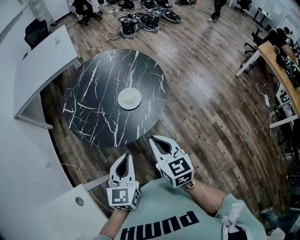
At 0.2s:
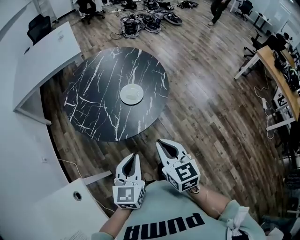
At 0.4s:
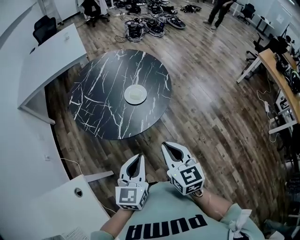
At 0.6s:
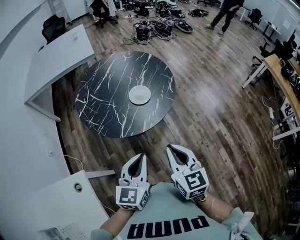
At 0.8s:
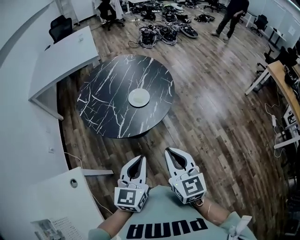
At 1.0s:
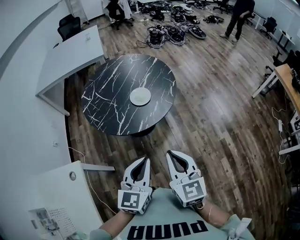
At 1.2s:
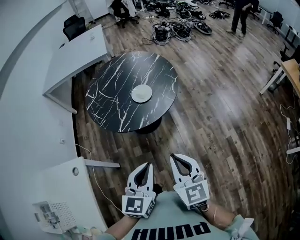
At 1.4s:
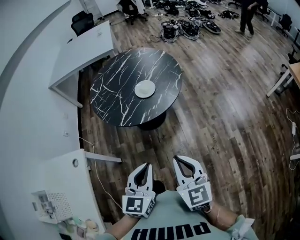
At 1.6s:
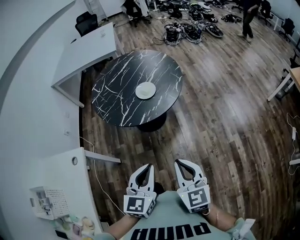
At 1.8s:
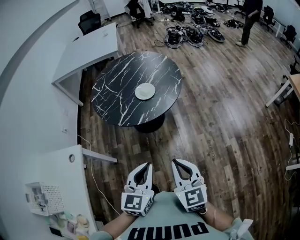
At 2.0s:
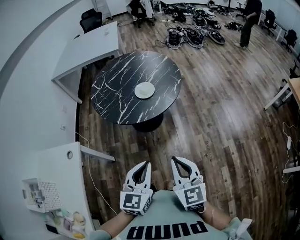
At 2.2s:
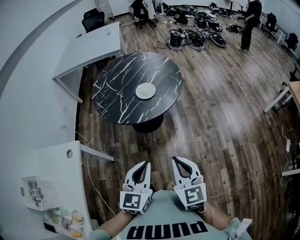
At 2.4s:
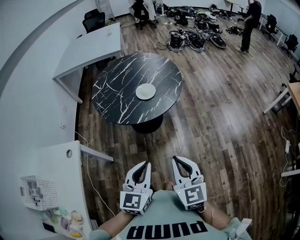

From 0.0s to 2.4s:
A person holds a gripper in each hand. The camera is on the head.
From 0.0s to 1.2s: Both grippers move backward and to the right, some 20 cm.
From 1.2s to 2.4s: The left gripper moves roughly 5 cm. Meanwhile the right gripper shifts by roughly 5 cm.

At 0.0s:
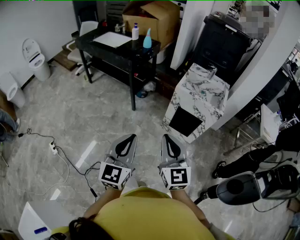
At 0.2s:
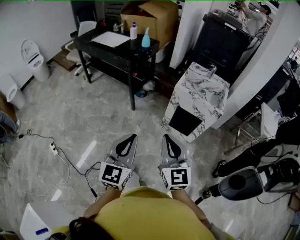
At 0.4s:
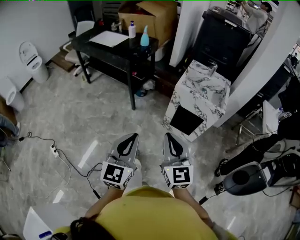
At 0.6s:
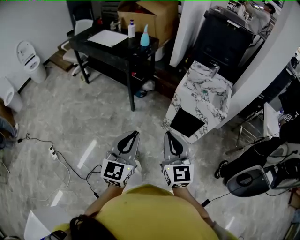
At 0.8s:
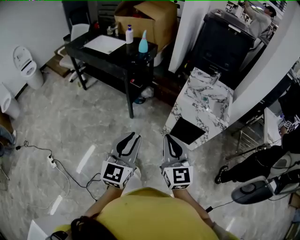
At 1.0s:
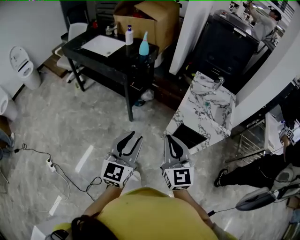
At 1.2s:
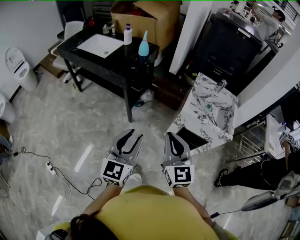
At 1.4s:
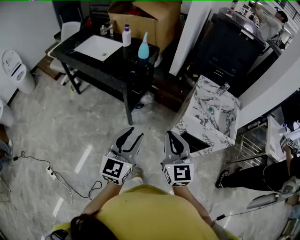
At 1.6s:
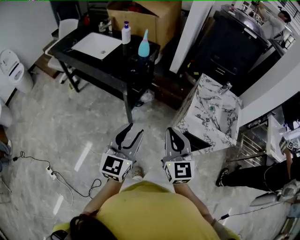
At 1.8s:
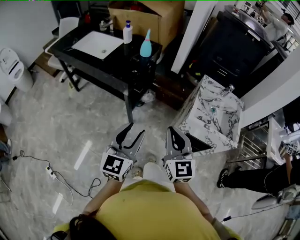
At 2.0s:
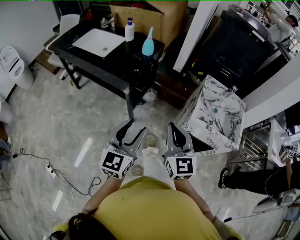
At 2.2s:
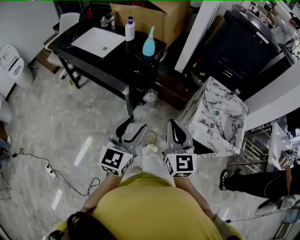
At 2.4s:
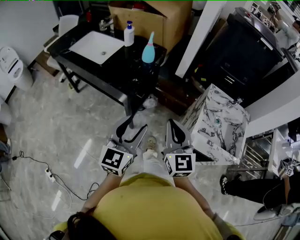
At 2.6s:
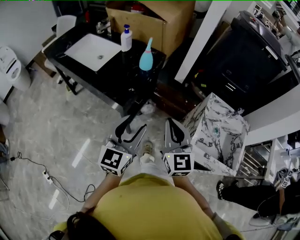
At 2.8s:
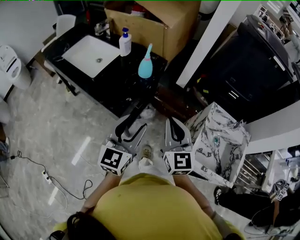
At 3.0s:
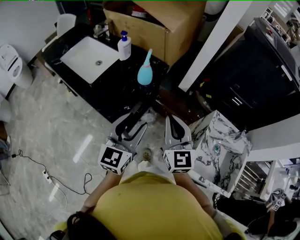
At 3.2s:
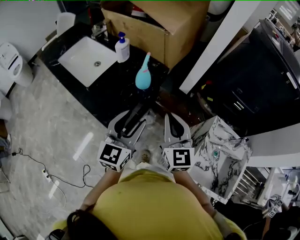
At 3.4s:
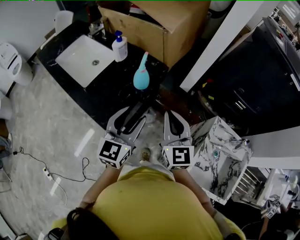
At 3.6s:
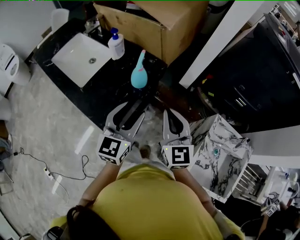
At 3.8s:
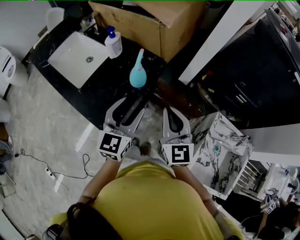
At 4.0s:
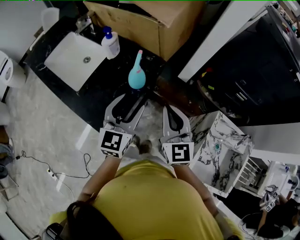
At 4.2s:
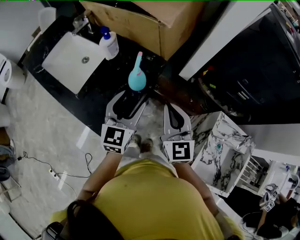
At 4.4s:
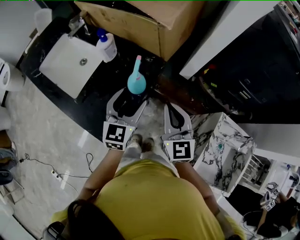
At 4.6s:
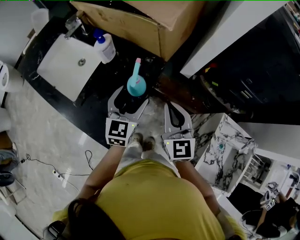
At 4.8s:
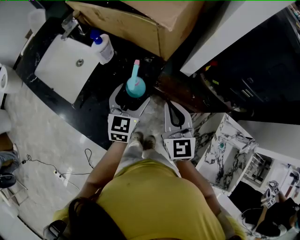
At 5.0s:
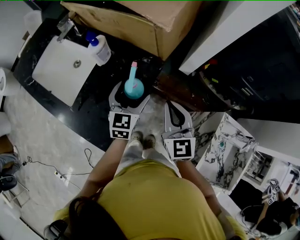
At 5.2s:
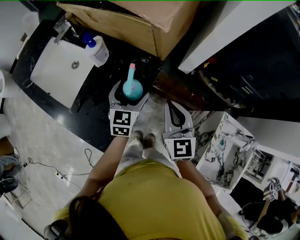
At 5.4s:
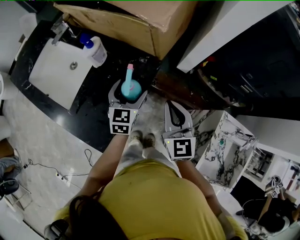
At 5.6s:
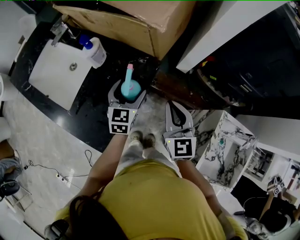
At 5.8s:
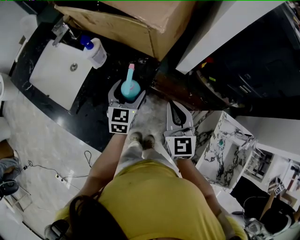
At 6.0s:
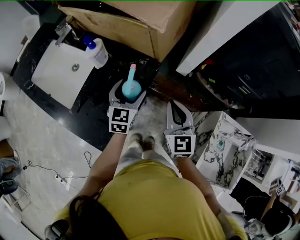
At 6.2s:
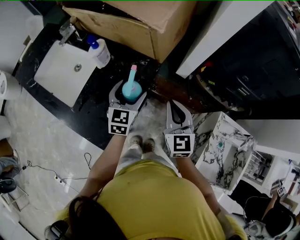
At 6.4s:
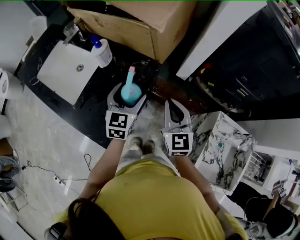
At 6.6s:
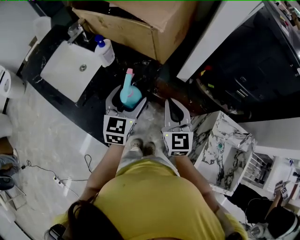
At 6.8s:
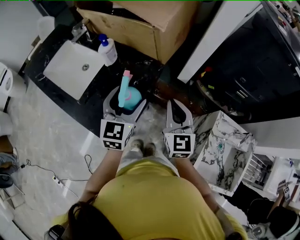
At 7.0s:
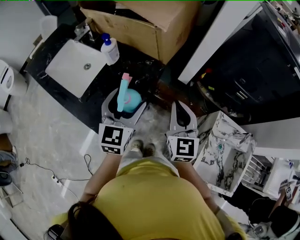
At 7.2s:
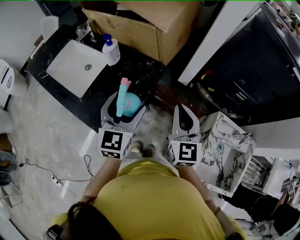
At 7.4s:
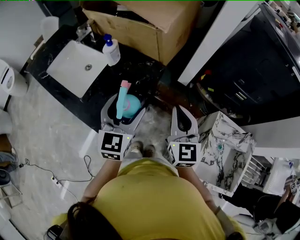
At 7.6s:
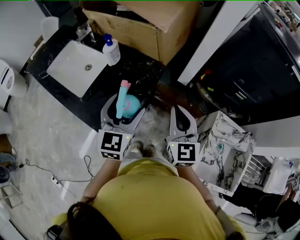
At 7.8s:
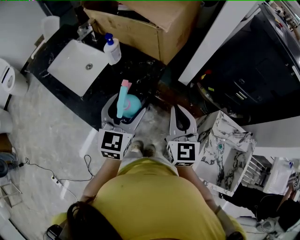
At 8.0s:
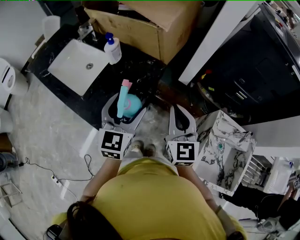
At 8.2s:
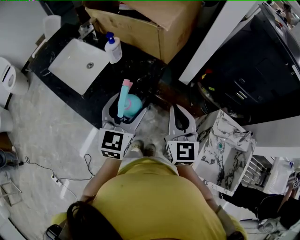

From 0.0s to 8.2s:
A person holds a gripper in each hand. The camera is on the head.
From 0.0s to 1.6s: The grippers both shift forward by about 40 cm. The left gripper opens.
From 1.6s to 3.2s: Both grippers are carried forward, approximately 40 cm.
From 3.2s to 5.0s: The right gripper heads forward, covering about 15 cm; the left gripper heads forward and downward, covering approximately 30 cm, and opens up.
From 5.0s to 6.6s: The left gripper heads upward and backward, covering about 10 cm.
From 6.6s to 8.2s: Both grippers travel together backward and upward, some 10 cm.

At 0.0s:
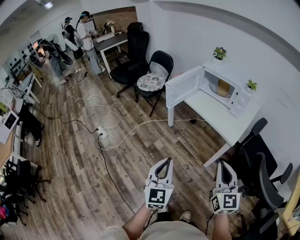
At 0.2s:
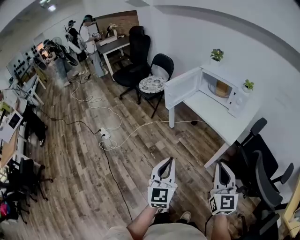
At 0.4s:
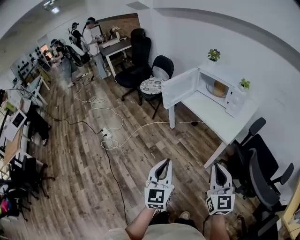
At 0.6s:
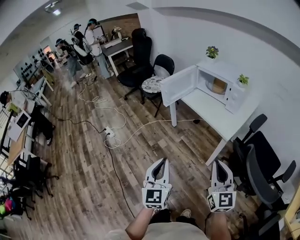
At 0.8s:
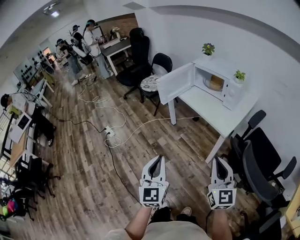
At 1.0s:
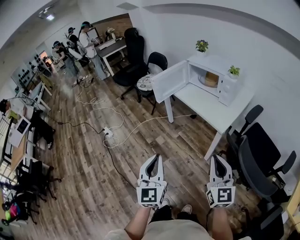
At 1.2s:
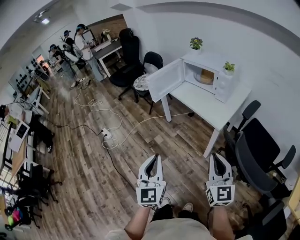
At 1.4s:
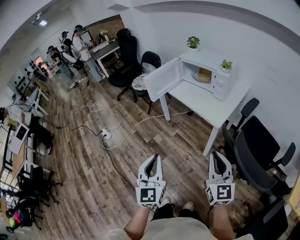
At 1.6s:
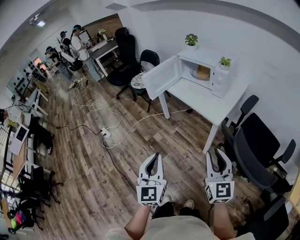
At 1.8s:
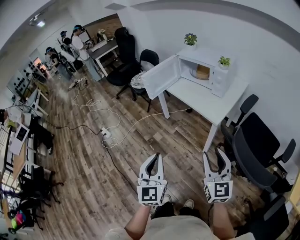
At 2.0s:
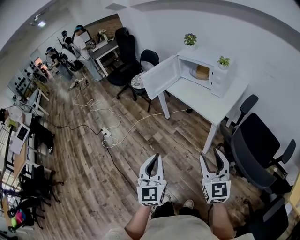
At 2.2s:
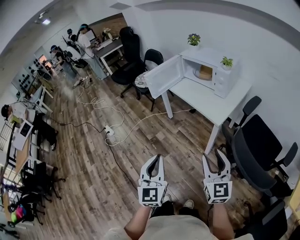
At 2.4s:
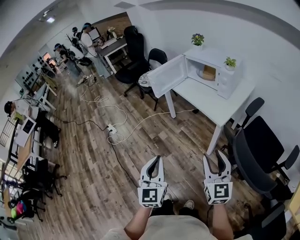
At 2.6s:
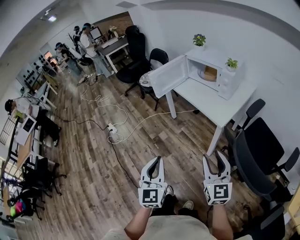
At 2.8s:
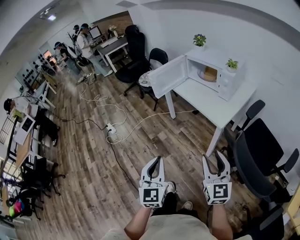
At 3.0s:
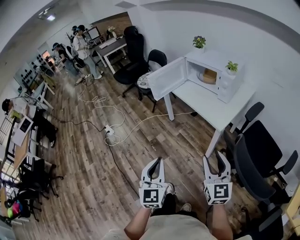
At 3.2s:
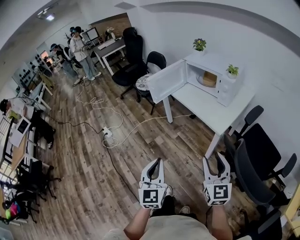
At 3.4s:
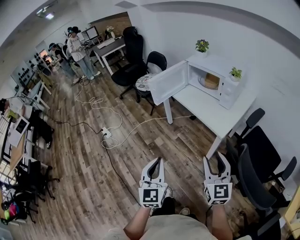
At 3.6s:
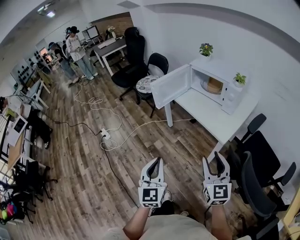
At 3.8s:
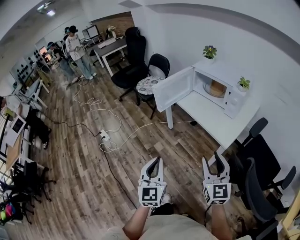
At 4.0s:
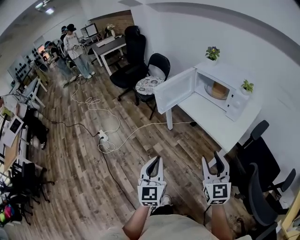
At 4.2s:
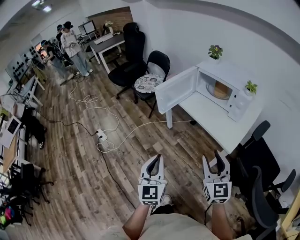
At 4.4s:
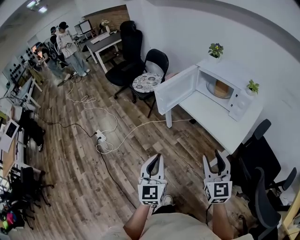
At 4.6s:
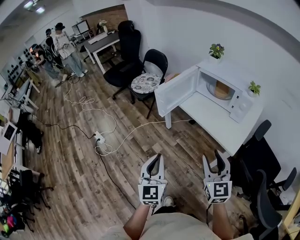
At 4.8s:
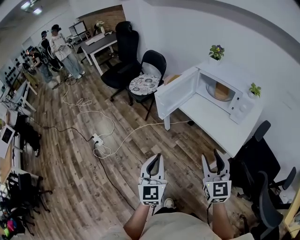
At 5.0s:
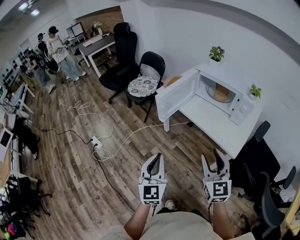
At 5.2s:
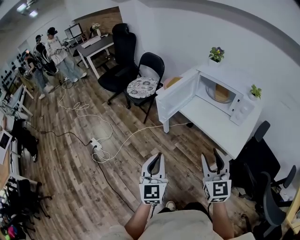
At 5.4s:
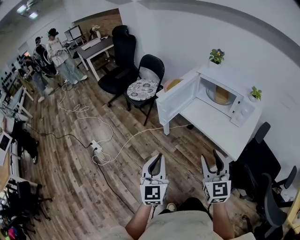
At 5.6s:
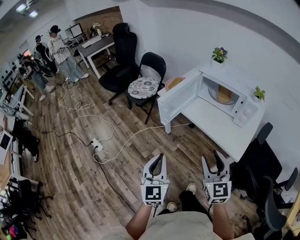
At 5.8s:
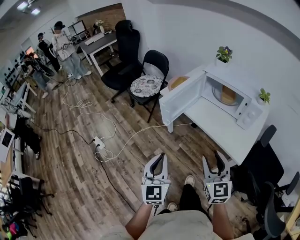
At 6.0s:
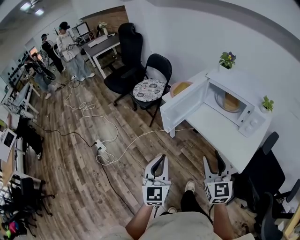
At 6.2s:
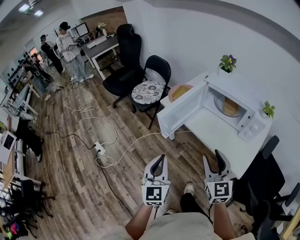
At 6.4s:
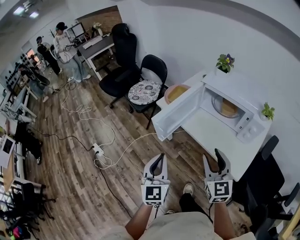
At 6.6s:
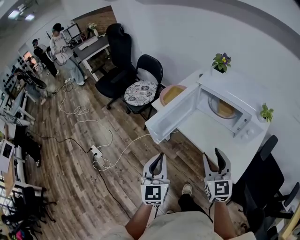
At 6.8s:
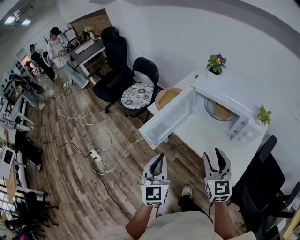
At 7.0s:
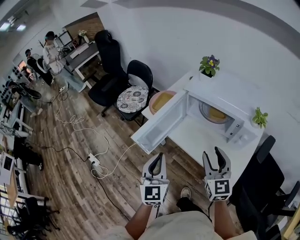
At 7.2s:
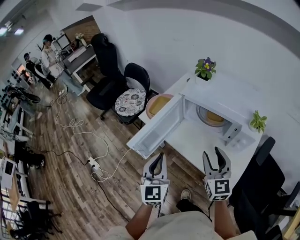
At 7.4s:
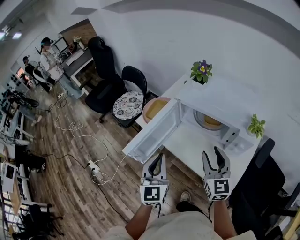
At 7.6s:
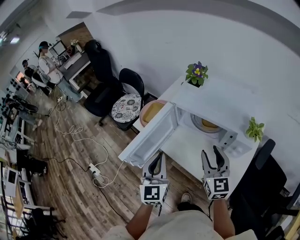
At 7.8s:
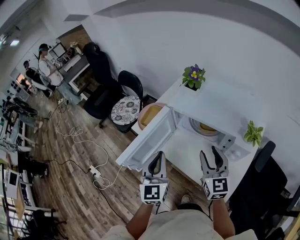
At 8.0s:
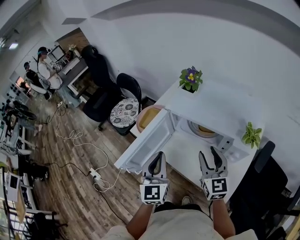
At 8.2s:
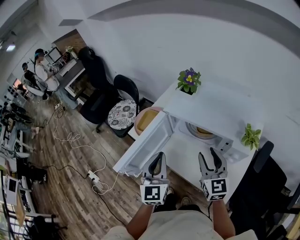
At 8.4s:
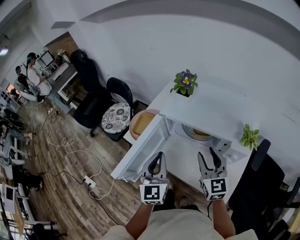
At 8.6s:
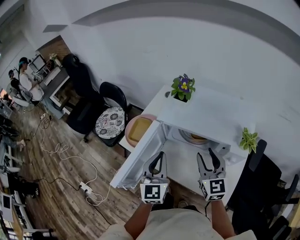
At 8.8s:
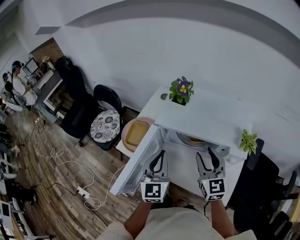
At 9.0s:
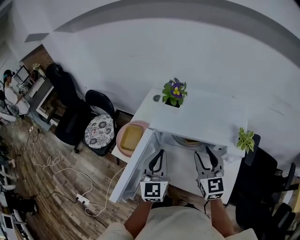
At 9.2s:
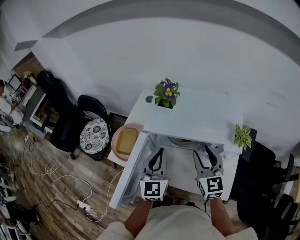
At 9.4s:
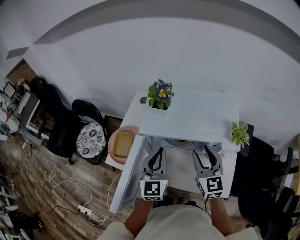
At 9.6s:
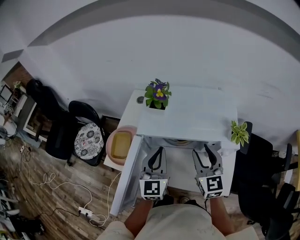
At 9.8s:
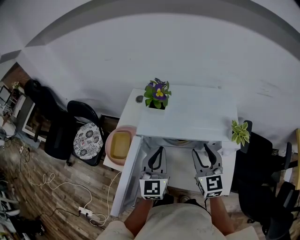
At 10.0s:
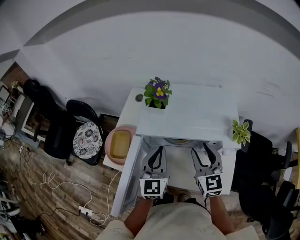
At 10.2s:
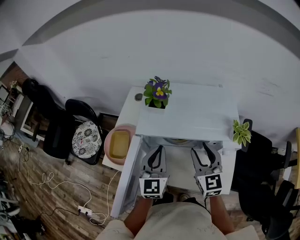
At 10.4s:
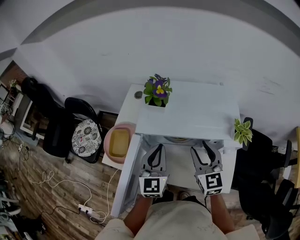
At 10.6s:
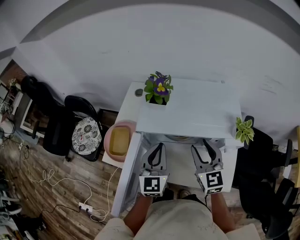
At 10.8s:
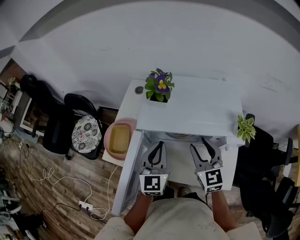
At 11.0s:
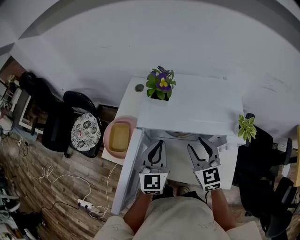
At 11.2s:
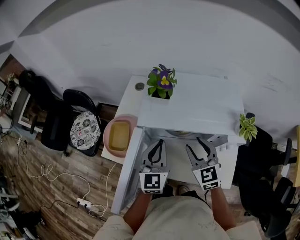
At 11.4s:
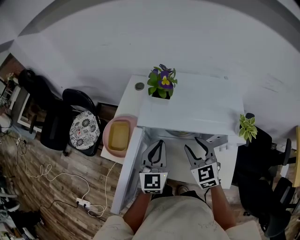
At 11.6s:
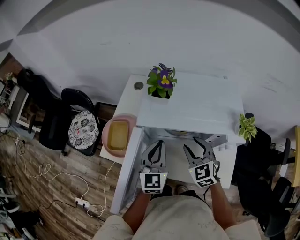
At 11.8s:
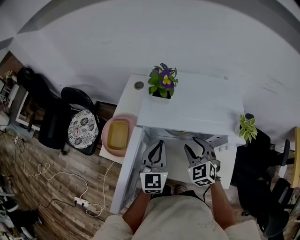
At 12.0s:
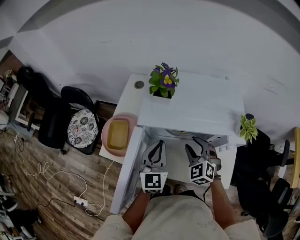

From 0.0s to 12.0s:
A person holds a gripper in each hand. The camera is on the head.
From 0.0s to 1.6s: The two grippers go approximately 15 cm to the right and backward. The right gripper opens.
From 1.6s to 3.0s: There are only small adjustments of the grippers.
From 3.0s to 4.4s: The grippers both shift forward and to the left by about 25 cm.
From 4.4s to 6.0s: The two grippers go roughly 15 cm forward.
From 6.0s to 7.6s: Both grippers move forward and to the right, about 30 cm.
From 7.6s to 9.0s: The left gripper heads forward, covering about 15 cm. Meanwhile the right gripper heads forward, covering about 10 cm.
From 9.0s to 10.4s: The left gripper travels forward by approximately 5 cm.
From 10.4s to 12.0s: The right gripper moves downward, roughly 10 cm, and turns by roughly 40 degrees.

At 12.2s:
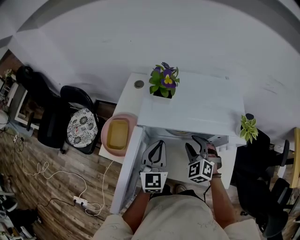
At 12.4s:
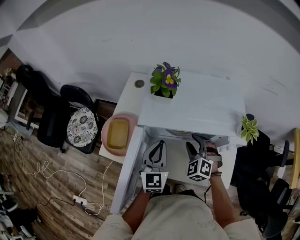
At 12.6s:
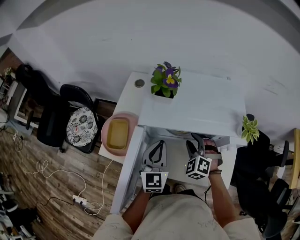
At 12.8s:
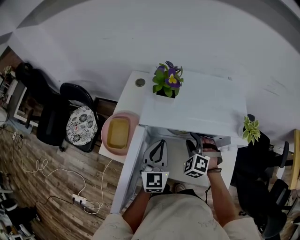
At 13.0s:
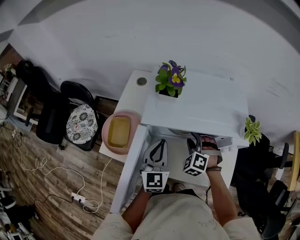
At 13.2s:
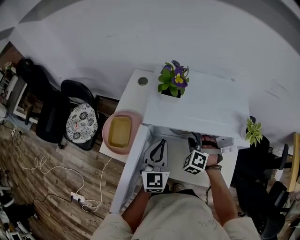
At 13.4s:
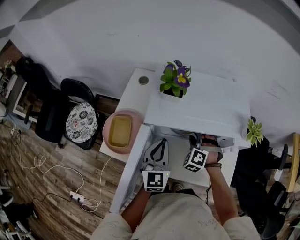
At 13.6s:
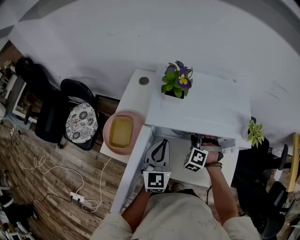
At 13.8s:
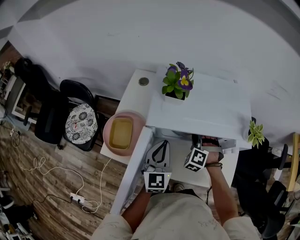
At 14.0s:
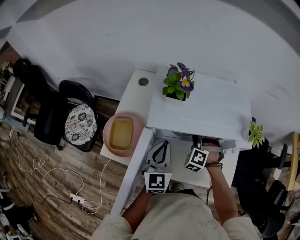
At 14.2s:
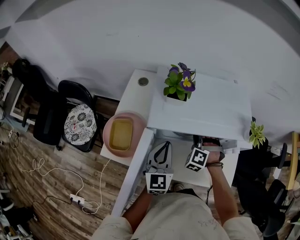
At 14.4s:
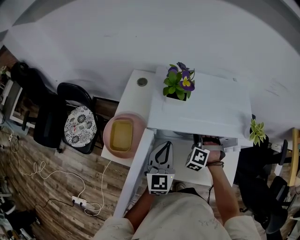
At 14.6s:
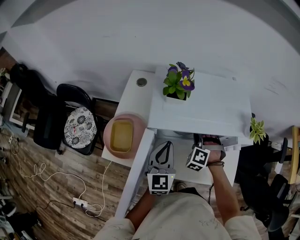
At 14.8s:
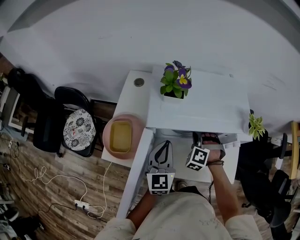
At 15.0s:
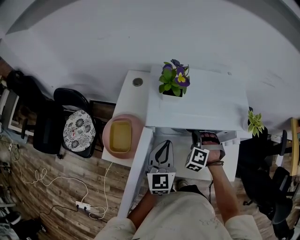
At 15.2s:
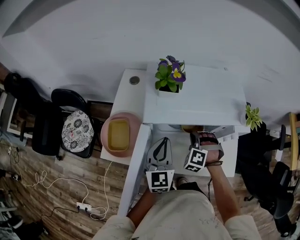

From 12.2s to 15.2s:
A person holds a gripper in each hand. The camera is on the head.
From 12.2s to 13.8s: The right gripper goes approximately 5 cm downward and forward, rotates roughly 30 degrees, and closes its fingers.
From 13.8s to 15.2s: The grippers make only small movements.
